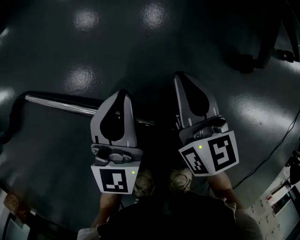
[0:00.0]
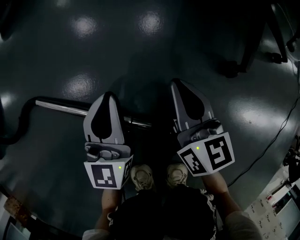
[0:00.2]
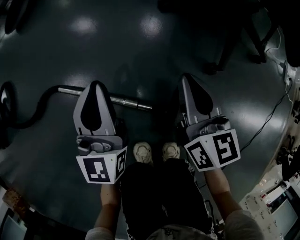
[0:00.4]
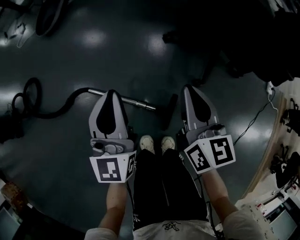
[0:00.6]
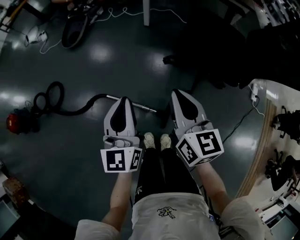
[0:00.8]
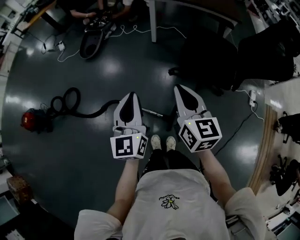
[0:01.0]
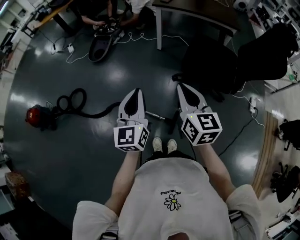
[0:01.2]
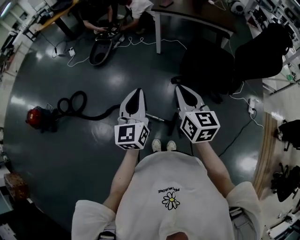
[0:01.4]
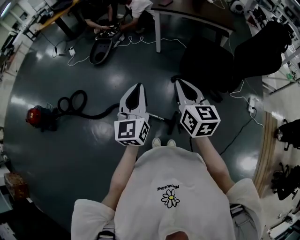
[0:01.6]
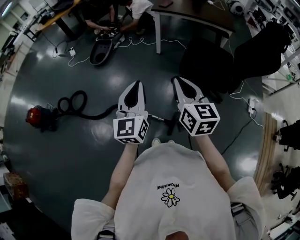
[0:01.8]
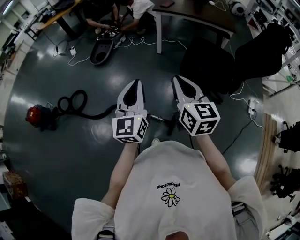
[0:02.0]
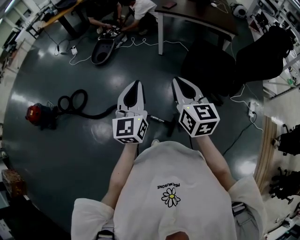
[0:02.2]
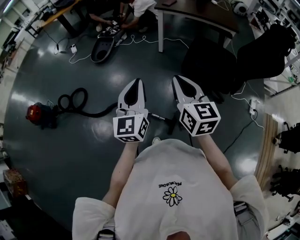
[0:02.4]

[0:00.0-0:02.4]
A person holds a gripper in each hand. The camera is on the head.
0:00.0 to 0:01.2: The two grippers go roughly 90 cm upward.
0:01.2 to 0:02.4: There are only small adjustments of the grippers.

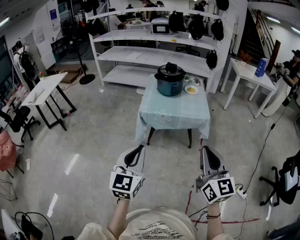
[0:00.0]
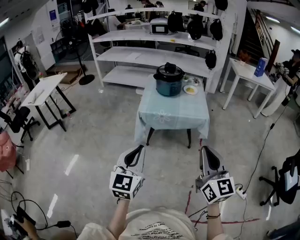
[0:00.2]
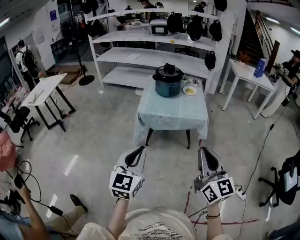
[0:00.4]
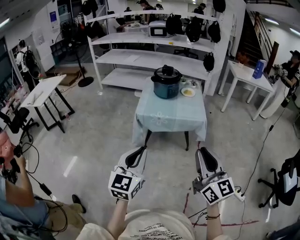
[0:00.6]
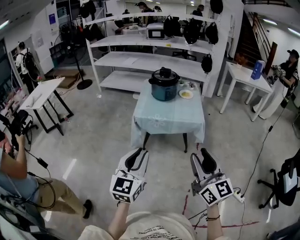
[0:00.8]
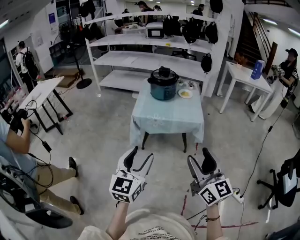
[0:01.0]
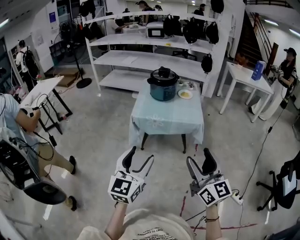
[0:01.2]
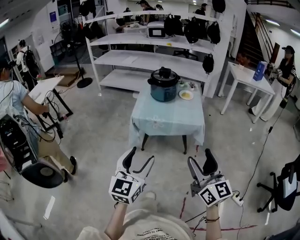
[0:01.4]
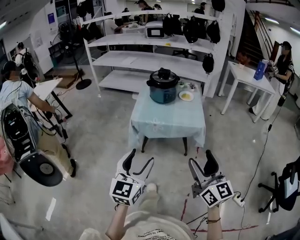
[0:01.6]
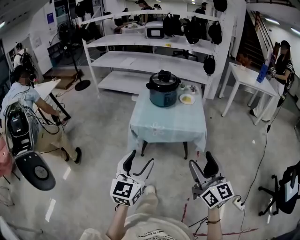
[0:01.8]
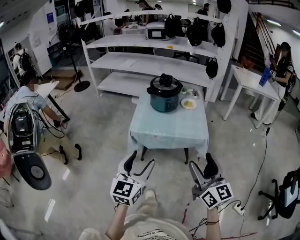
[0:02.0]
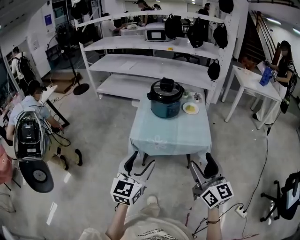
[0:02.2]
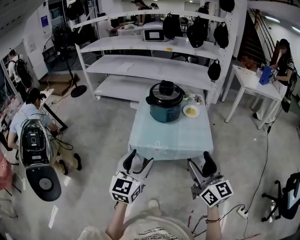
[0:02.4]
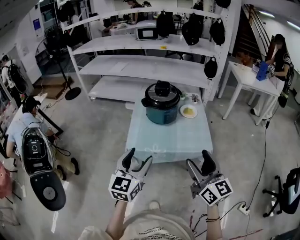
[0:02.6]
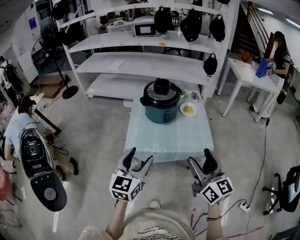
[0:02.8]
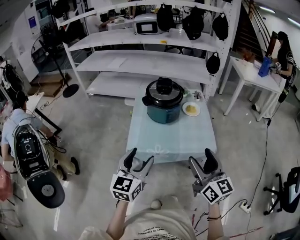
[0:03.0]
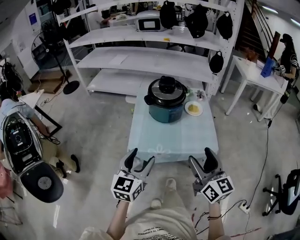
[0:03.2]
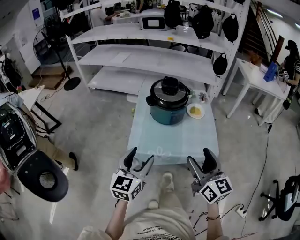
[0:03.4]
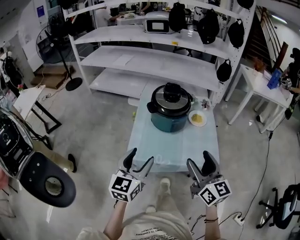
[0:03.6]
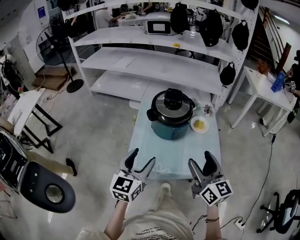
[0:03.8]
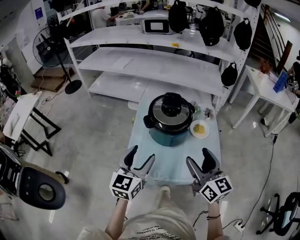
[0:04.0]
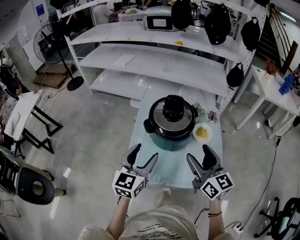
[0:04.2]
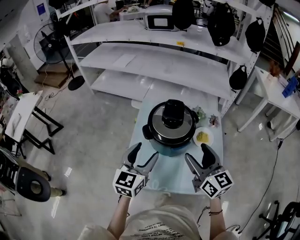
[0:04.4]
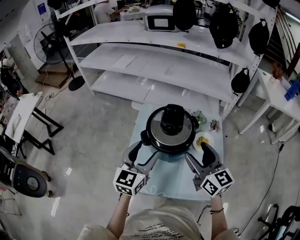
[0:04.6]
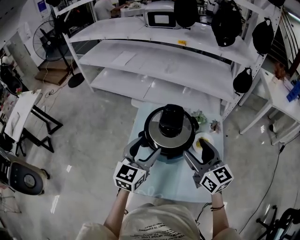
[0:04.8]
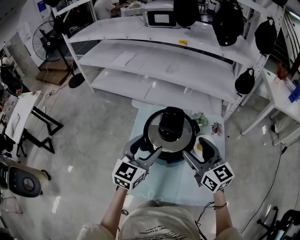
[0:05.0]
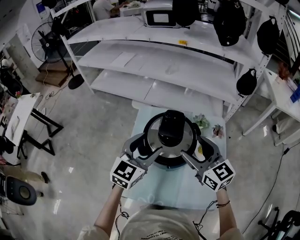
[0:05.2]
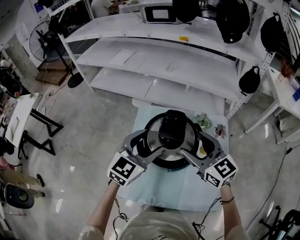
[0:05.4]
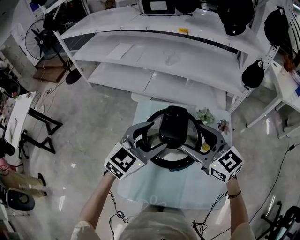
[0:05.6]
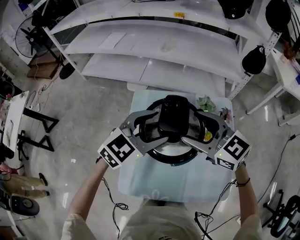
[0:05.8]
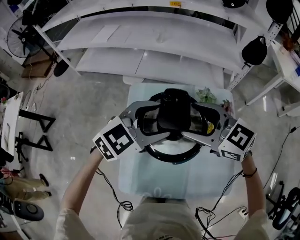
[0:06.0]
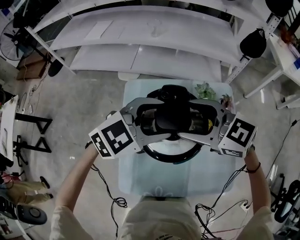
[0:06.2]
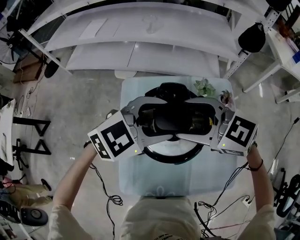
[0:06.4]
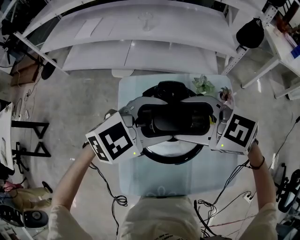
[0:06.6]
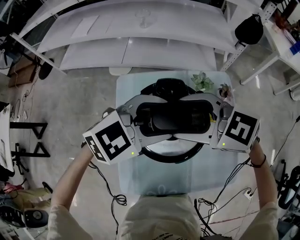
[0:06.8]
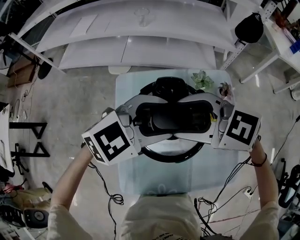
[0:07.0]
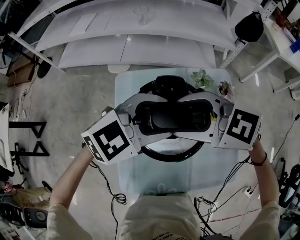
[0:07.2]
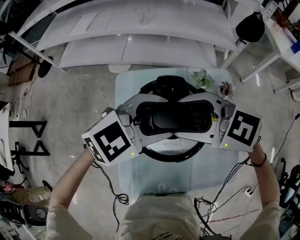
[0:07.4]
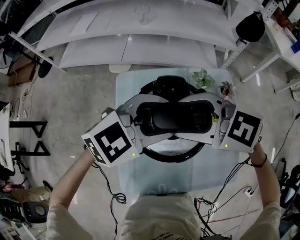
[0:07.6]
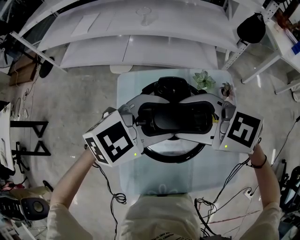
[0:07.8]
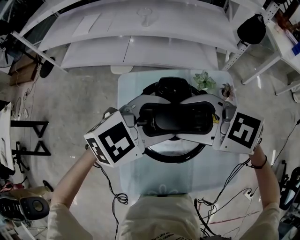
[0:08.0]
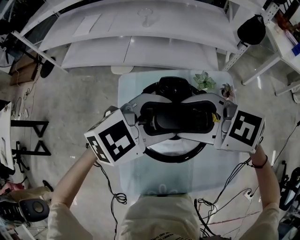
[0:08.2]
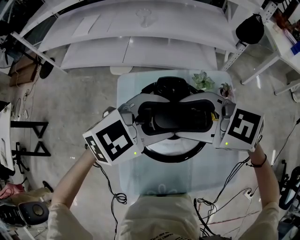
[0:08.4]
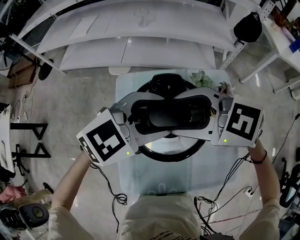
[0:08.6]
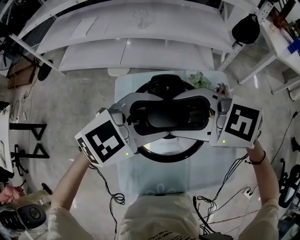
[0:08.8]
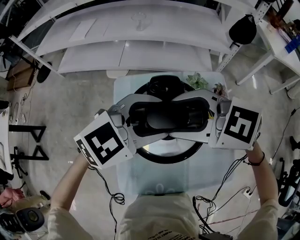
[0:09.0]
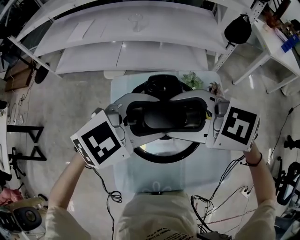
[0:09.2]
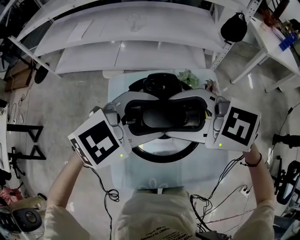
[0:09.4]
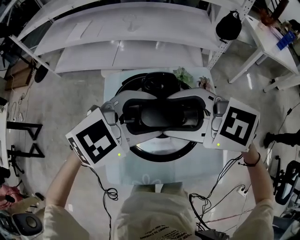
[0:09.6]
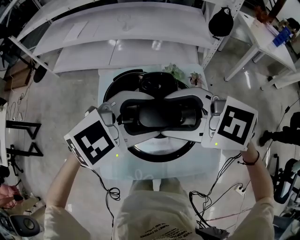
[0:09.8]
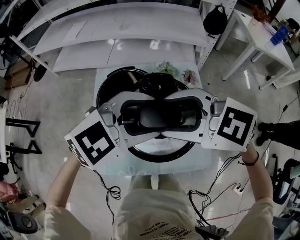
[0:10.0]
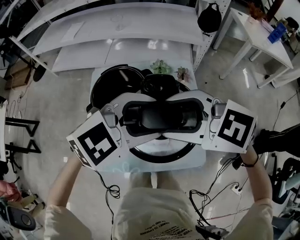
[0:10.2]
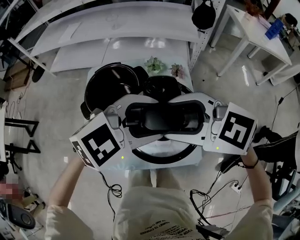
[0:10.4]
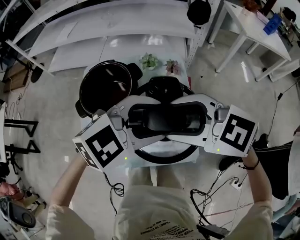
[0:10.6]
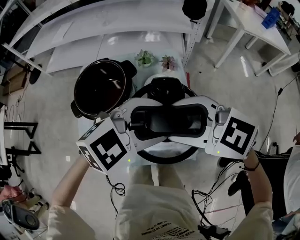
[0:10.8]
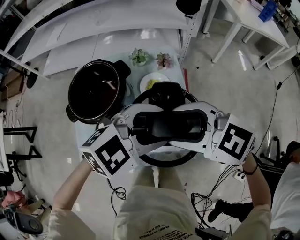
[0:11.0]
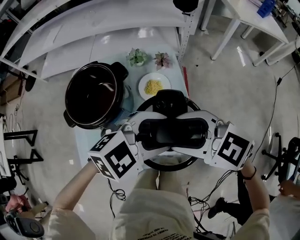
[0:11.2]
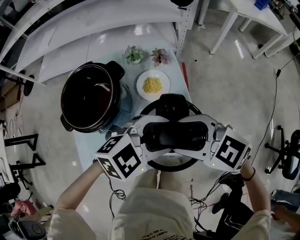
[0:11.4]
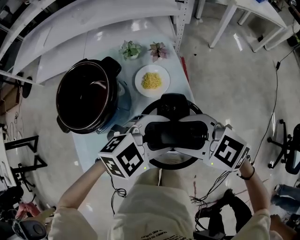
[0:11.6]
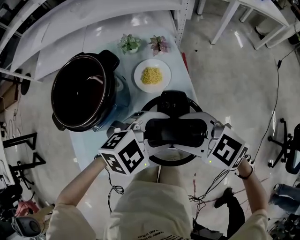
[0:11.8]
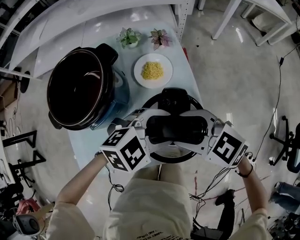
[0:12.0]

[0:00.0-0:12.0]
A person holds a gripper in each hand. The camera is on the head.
0:00.0 to 0:01.6: The right gripper is displaced forward by about 5 cm, and opens. Meanwhile the left gripper is displaced to the right and forward by roughly 10 cm, and opens.
0:01.6 to 0:03.0: Both grippers travel together forward, about 30 cm.
0:03.0 to 0:04.4: The grippers both shift forward by roughly 30 cm.
0:04.4 to 0:06.0: The right gripper moves forward, some 15 cm, and changes its angle by about 40 degrees; the left gripper is displaced forward and to the right by about 20 cm, and rotates some 50 degrees.
0:06.0 to 0:09.0: The grippers make only small movements.
0:09.0 to 0:10.4: The left gripper ends up roughly 20 cm from where it was, while the right gripper ends up some 20 cm from where it was.
0:10.4 to 0:12.0: Both grippers travel together downward, some 20 cm.

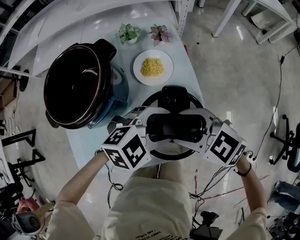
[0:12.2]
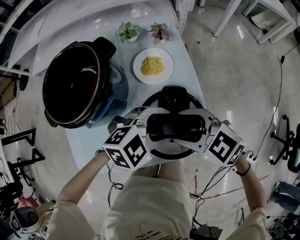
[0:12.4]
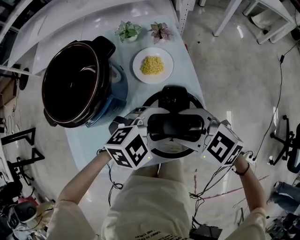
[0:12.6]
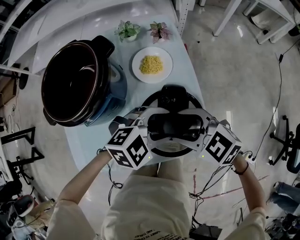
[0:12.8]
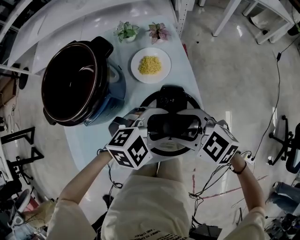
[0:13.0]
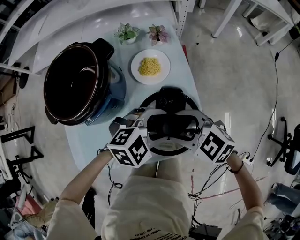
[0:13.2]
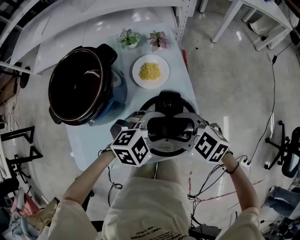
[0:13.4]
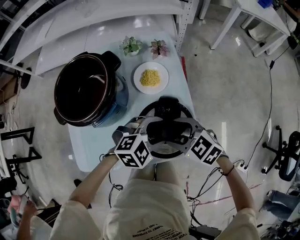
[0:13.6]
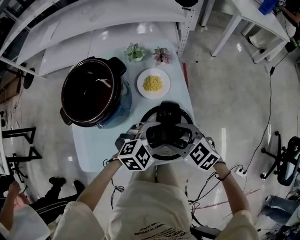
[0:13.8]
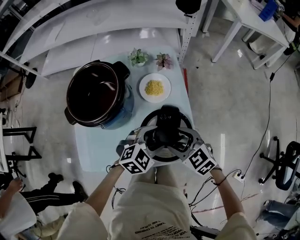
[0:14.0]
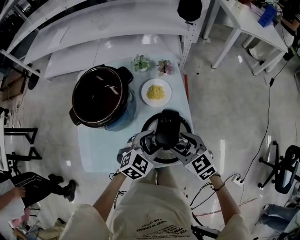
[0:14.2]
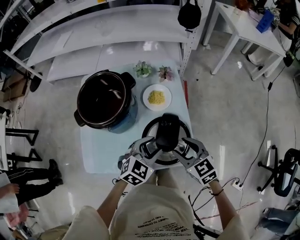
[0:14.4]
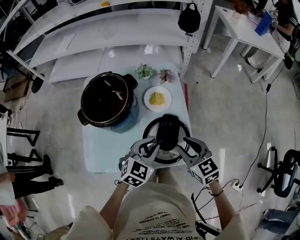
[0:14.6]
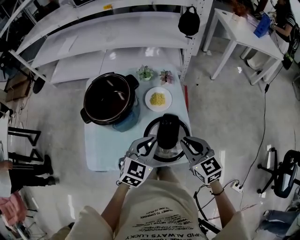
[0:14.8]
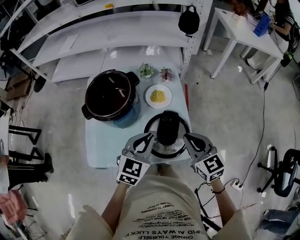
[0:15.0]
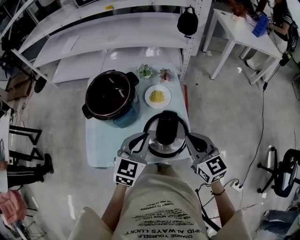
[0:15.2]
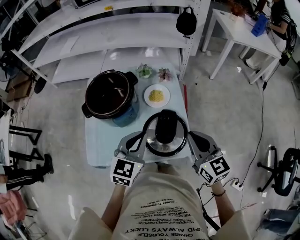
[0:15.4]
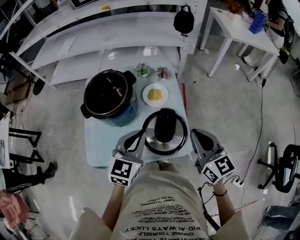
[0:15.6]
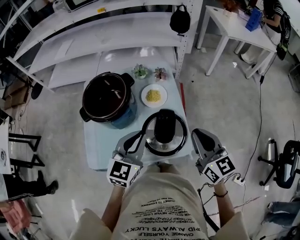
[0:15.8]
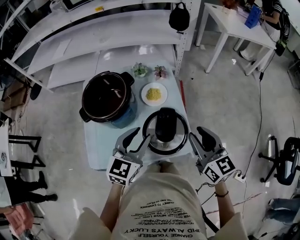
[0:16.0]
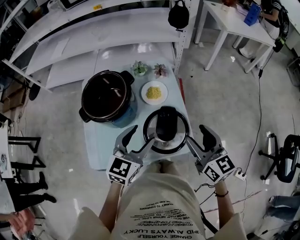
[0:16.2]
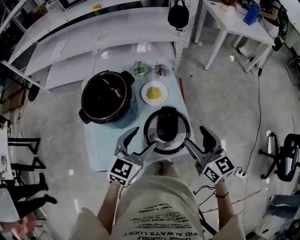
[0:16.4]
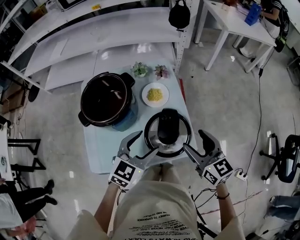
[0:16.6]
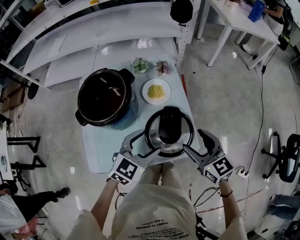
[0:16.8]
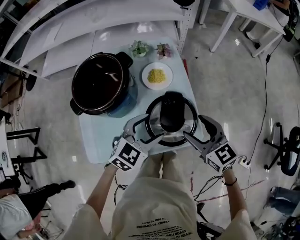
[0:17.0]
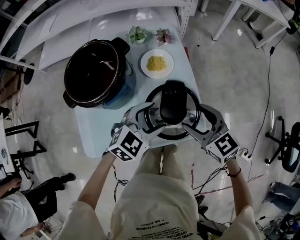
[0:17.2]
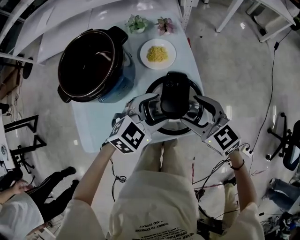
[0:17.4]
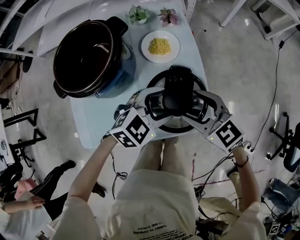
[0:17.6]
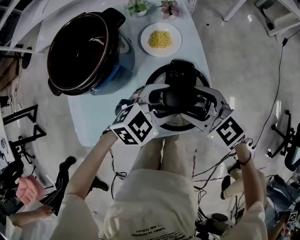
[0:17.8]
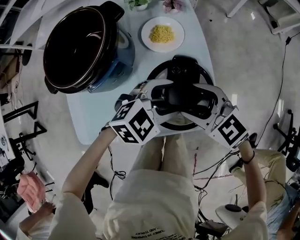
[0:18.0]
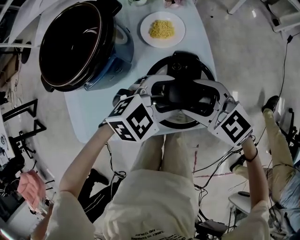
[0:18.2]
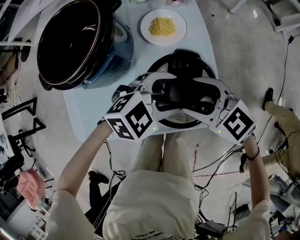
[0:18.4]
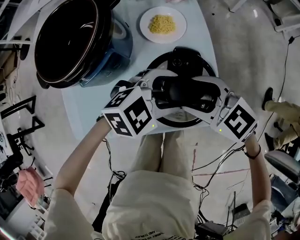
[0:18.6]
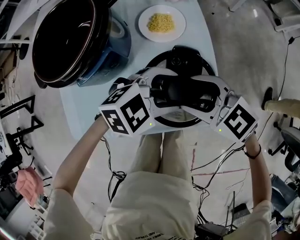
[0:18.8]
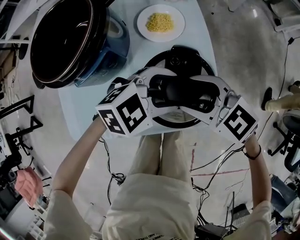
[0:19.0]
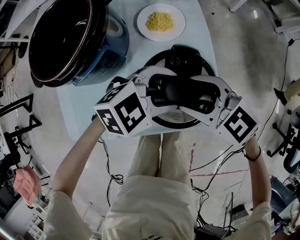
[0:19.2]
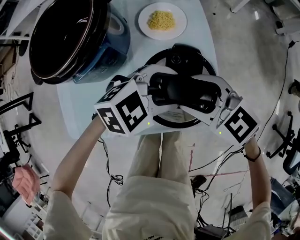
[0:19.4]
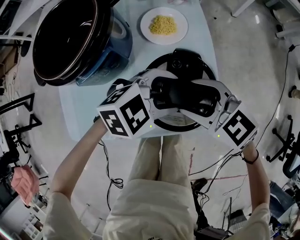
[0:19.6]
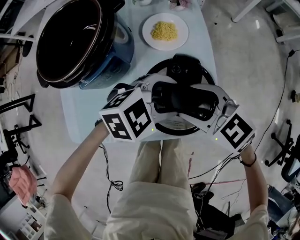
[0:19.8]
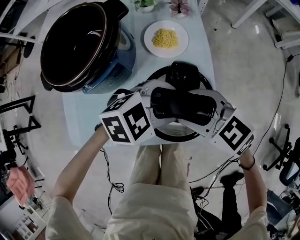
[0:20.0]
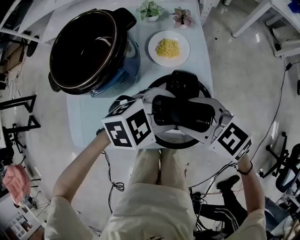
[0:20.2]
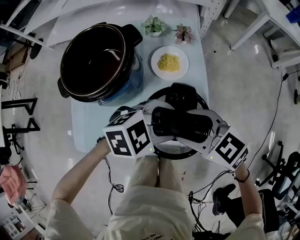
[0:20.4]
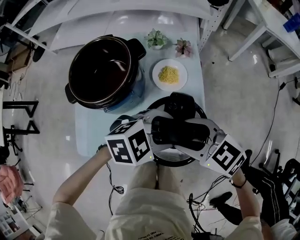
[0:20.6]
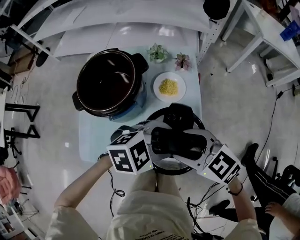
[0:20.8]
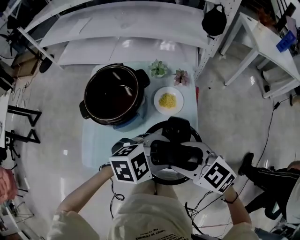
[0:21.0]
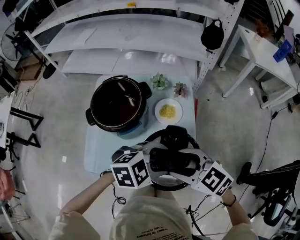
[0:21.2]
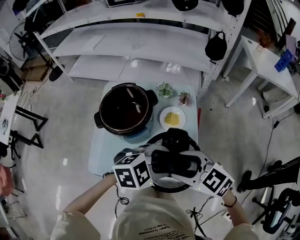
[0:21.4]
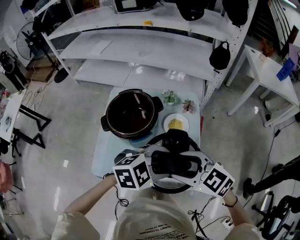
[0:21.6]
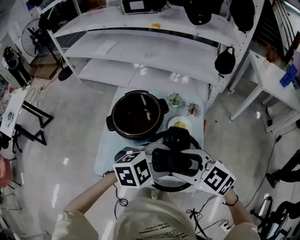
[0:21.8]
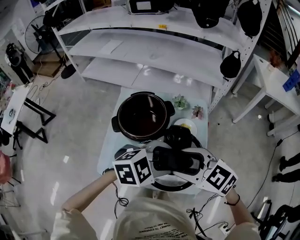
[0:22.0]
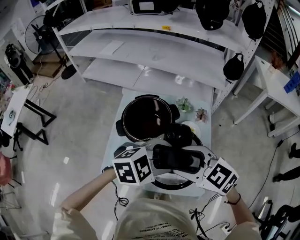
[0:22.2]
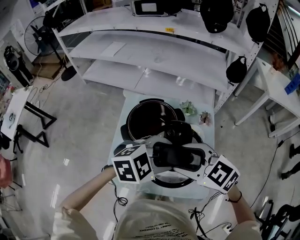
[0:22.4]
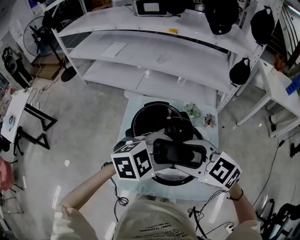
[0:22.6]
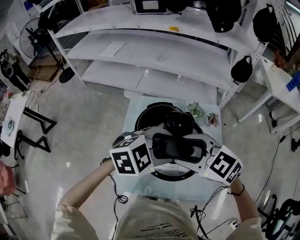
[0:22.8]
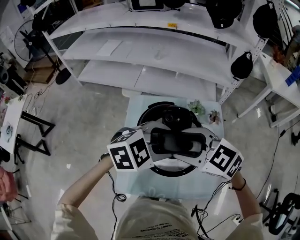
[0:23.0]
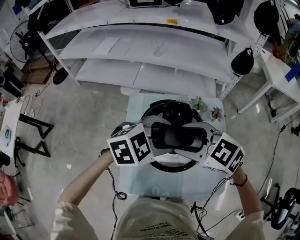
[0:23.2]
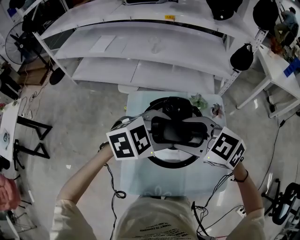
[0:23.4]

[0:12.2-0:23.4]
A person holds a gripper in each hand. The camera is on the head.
0:12.2 to 0:13.8: There are only small adjustments of the grippers.
0:13.8 to 0:15.4: The right gripper shifts about 20 cm upward and to the right, swivels some 40 degrees, and closes up. Meanwhile the left gripper heads upward and to the left, covering some 20 cm, rotates roughly 50 degrees, and closes.
0:15.4 to 0:17.0: Both grippers travel together downward, about 10 cm. The left gripper changes its angle by roughly 30 degrees, and opens, while the right gripper opens up.
0:17.0 to 0:18.6: The grippers both shift downward by some 10 cm. The right gripper changes its angle by approximately 30 degrees. Meanwhile the left gripper changes its angle by roughly 30 degrees.
0:18.6 to 0:20.2: The grippers make only small movements.
0:20.2 to 0:21.8: Both grippers travel together upward, roughly 15 cm.
0:21.8 to 0:23.4: The left gripper moves some 25 cm; the right gripper ends up roughly 25 cm from where it was.
